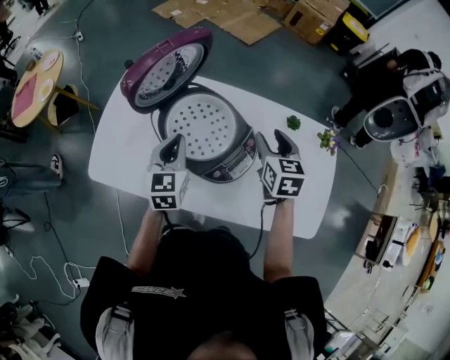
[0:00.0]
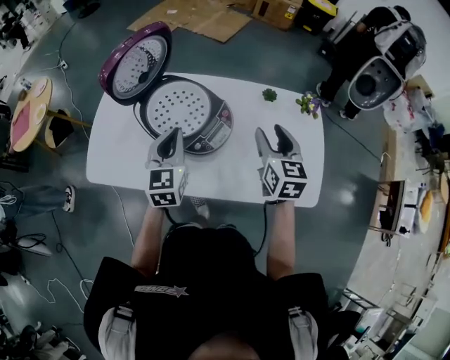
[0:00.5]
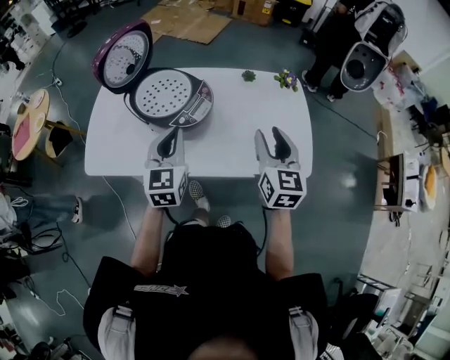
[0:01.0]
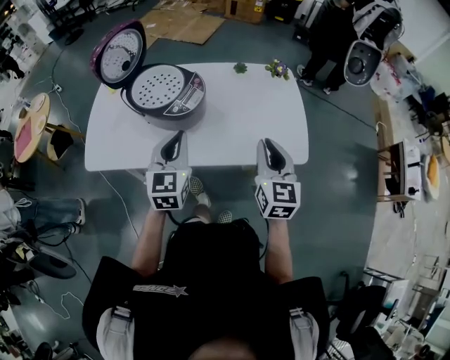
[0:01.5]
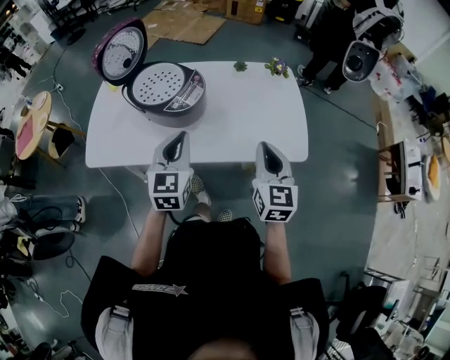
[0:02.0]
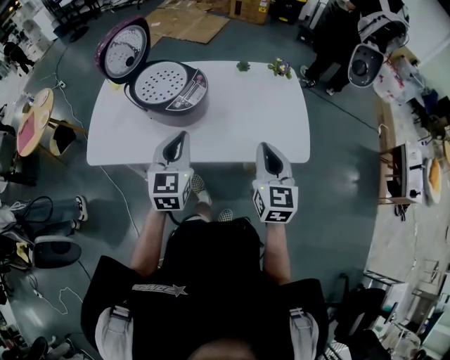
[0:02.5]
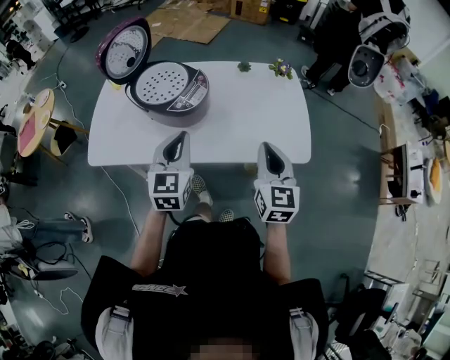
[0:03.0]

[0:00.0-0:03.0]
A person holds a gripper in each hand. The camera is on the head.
0:00.0 to 0:01.5: Both grippers move backward and to the right, roughly 35 cm. The right gripper rotates roughly 30 degrees, and closes. The left gripper changes its angle by about 20 degrees.
0:01.5 to 0:03.0: The grippers stay close to where they were, moving slightly.

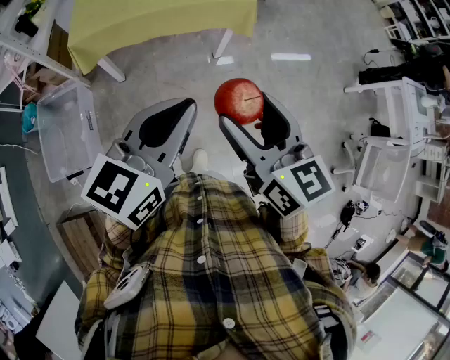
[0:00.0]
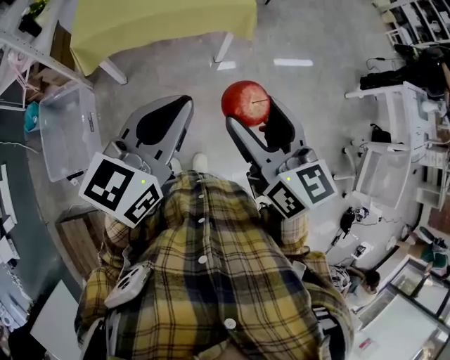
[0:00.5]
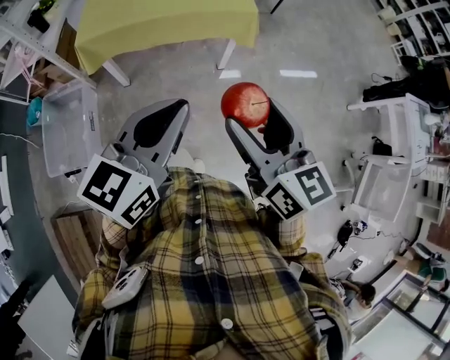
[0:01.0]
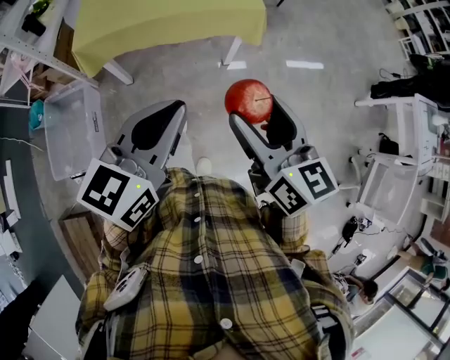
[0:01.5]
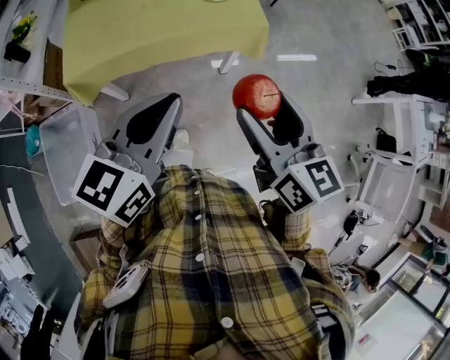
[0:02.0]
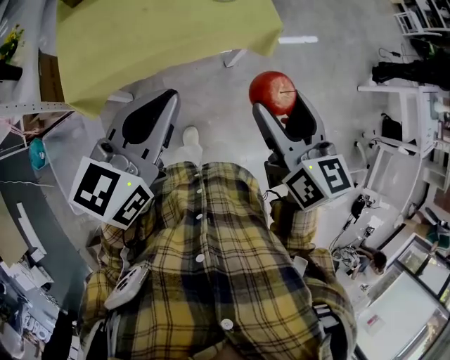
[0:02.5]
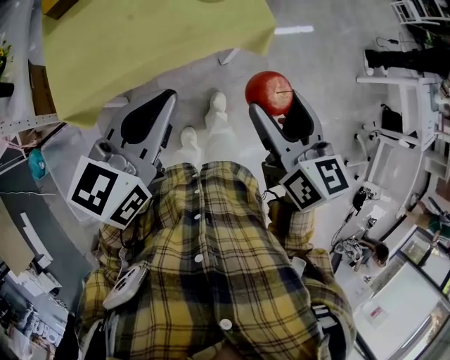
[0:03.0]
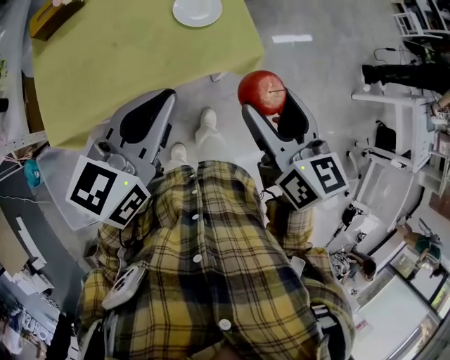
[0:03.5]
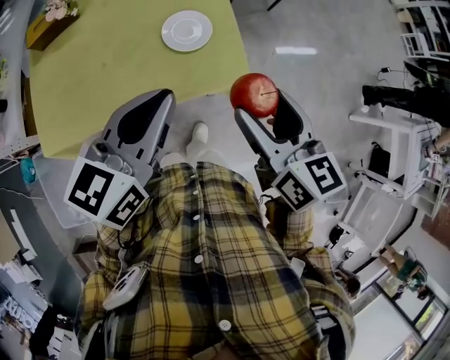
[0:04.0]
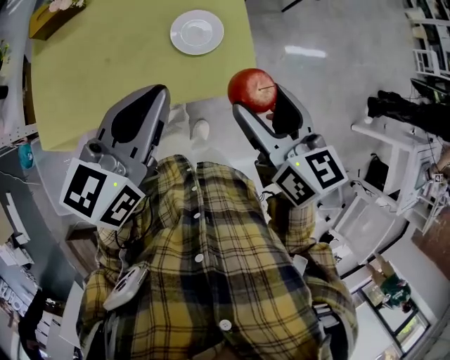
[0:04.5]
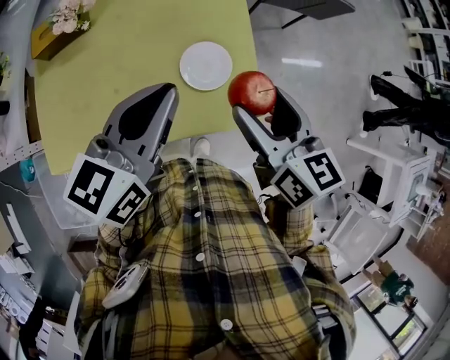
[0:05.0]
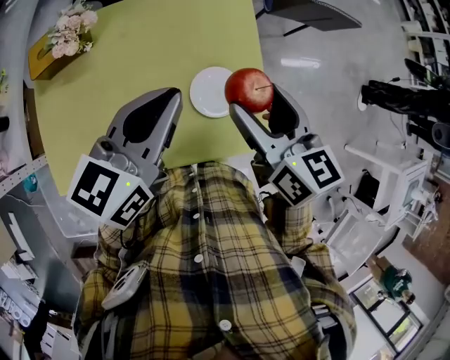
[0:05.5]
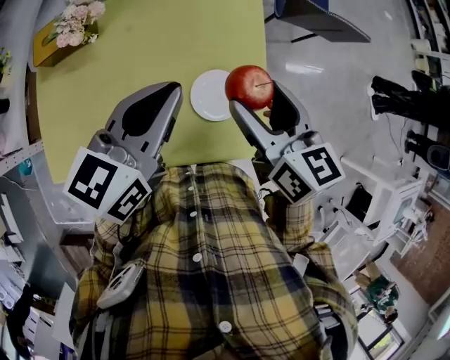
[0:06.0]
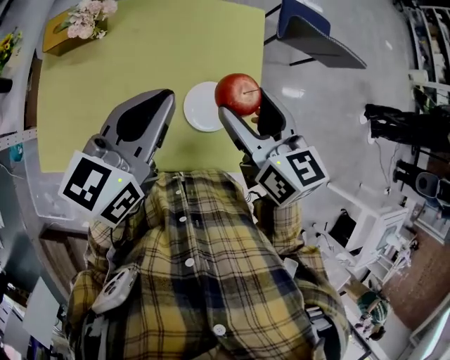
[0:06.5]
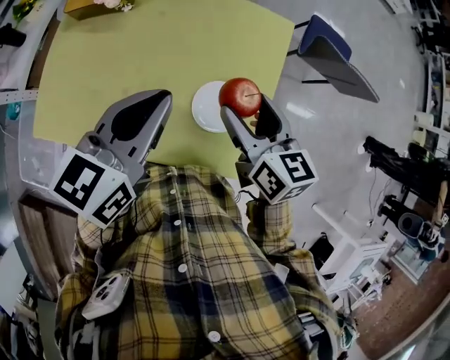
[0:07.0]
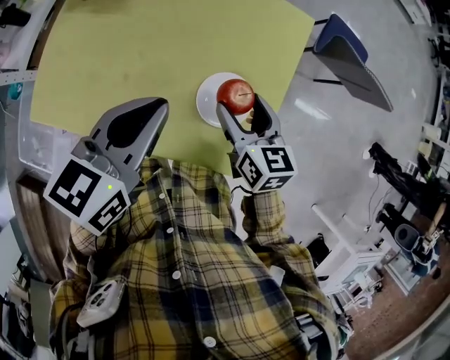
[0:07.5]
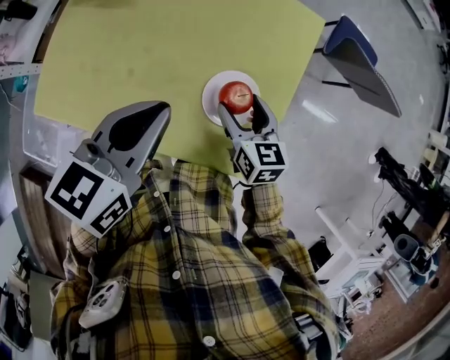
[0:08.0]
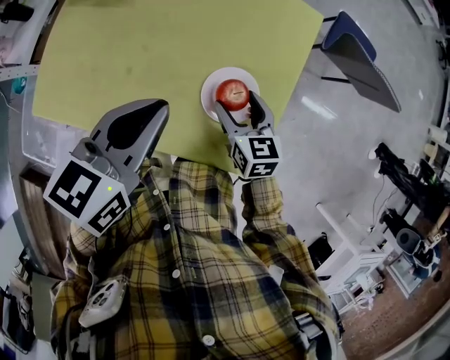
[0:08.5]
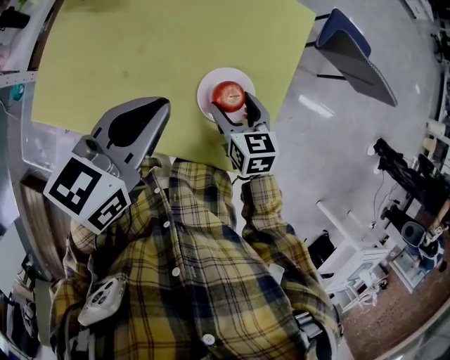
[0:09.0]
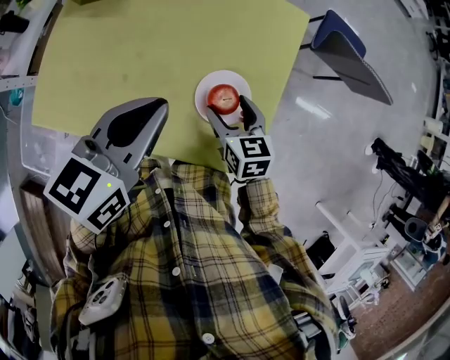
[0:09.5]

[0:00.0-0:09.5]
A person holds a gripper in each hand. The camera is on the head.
0:00.0 to 0:02.0: The grippers both shift forward by roughly 20 cm.
0:02.0 to 0:04.0: The grippers both shift forward by roughly 30 cm.
0:04.0 to 0:05.5: The two grippers go roughly 25 cm forward and to the left.
0:05.5 to 0:07.5: The right gripper shifts about 15 cm downward; the left gripper is displaced downward by some 5 cm, and rotates some 20 degrees.
0:07.5 to 0:09.5: The right gripper heads downward, covering about 5 cm.

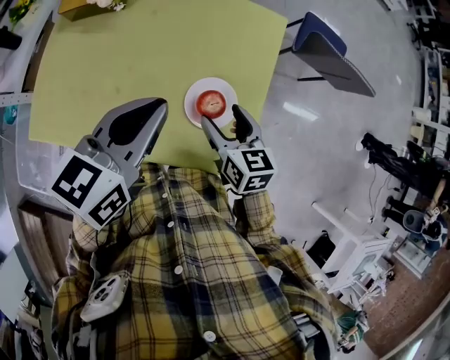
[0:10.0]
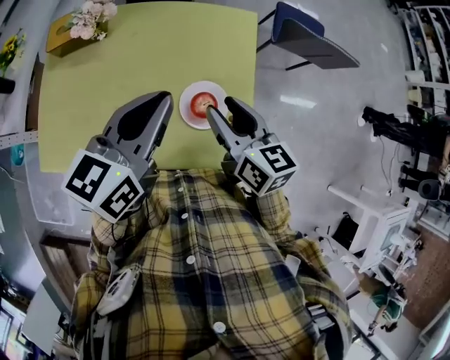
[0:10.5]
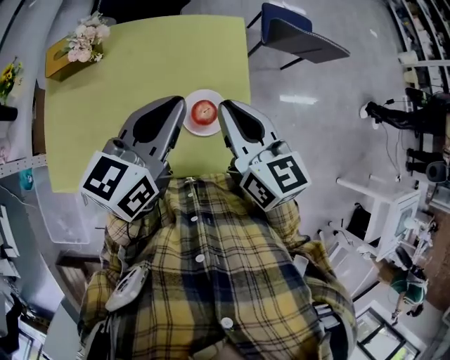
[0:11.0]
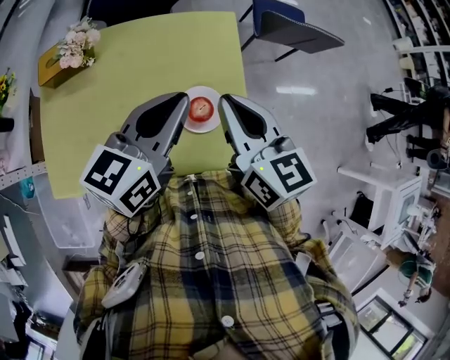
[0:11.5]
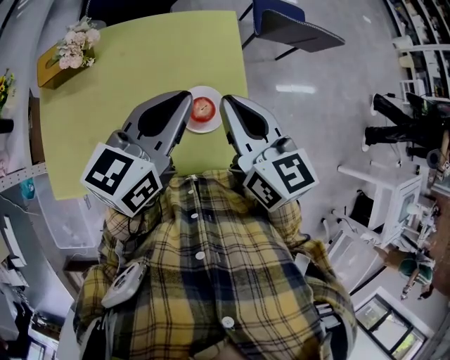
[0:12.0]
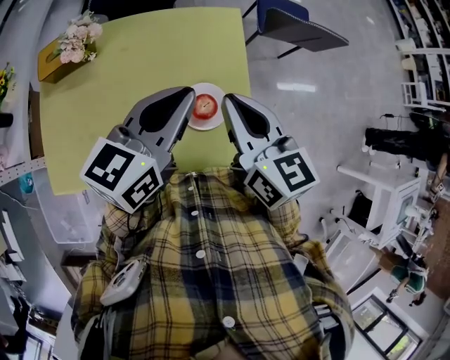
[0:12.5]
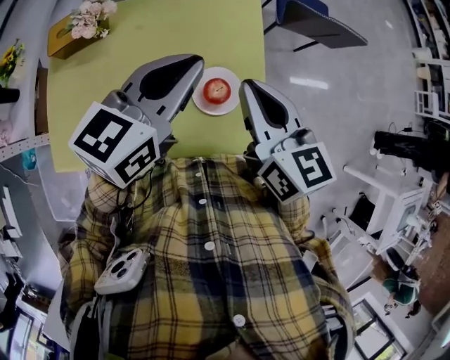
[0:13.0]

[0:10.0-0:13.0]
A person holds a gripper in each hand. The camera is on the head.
0:10.0 to 0:11.5: The right gripper is displaced upward by approximately 20 cm, swivels some 20 degrees, and closes. The left gripper is displaced upward and to the right by roughly 10 cm.
0:11.5 to 0:13.0: The grippers stay close to where they were, moving slightly.

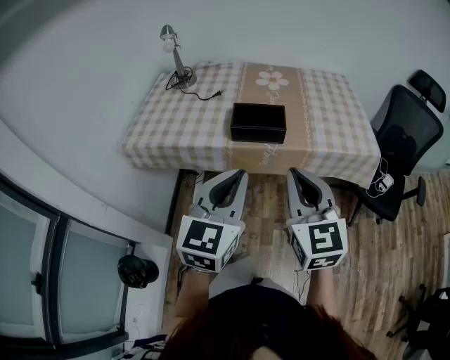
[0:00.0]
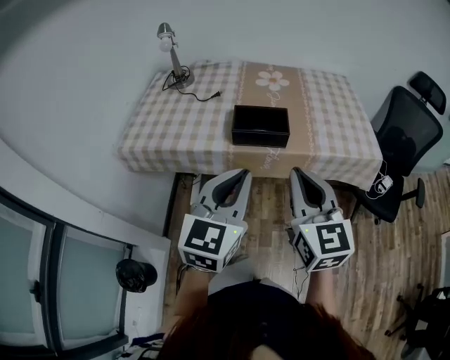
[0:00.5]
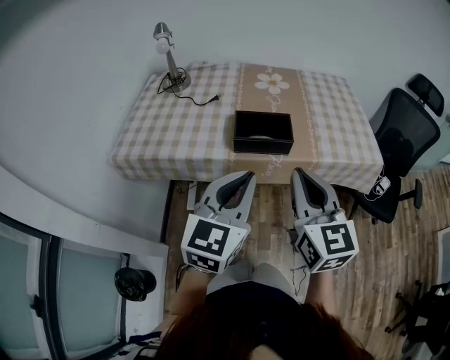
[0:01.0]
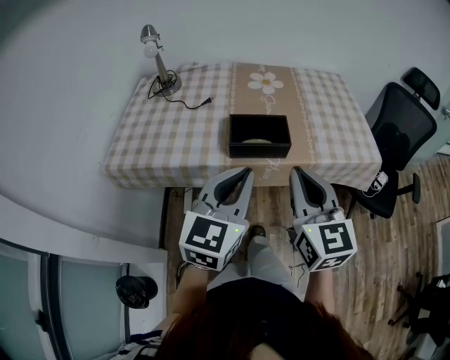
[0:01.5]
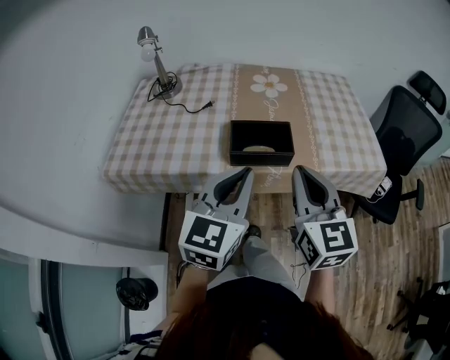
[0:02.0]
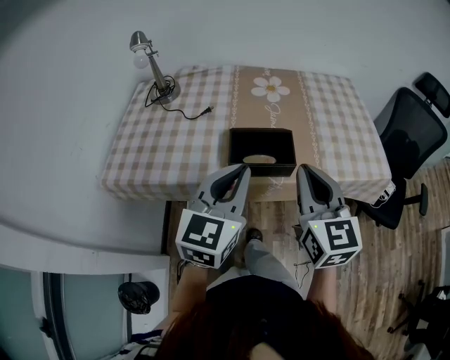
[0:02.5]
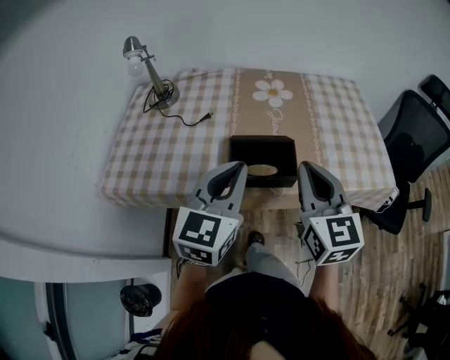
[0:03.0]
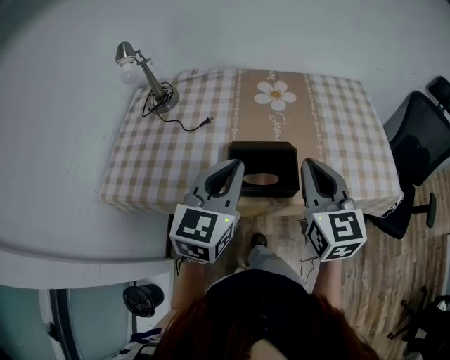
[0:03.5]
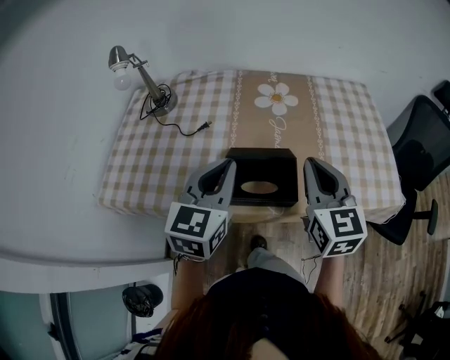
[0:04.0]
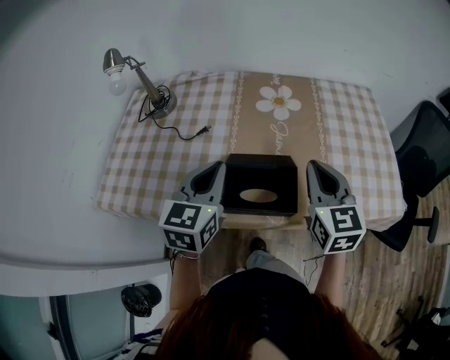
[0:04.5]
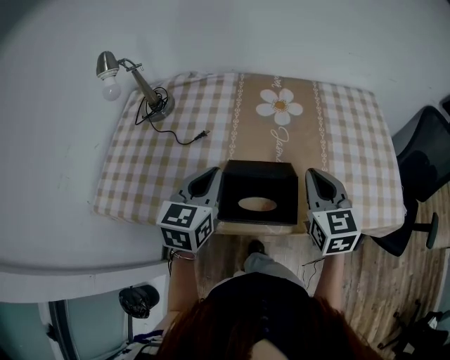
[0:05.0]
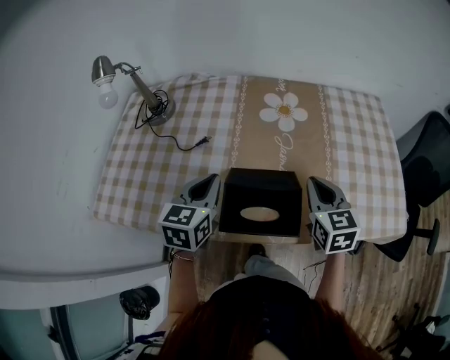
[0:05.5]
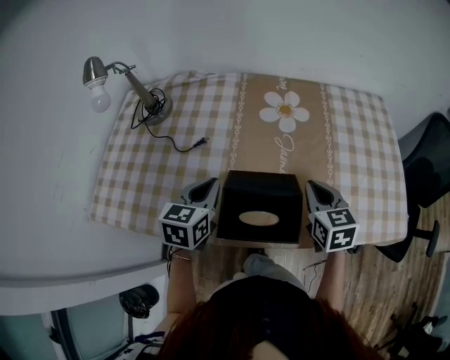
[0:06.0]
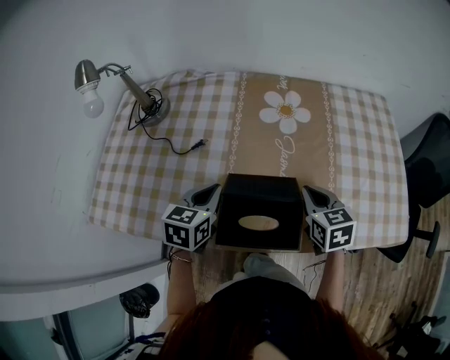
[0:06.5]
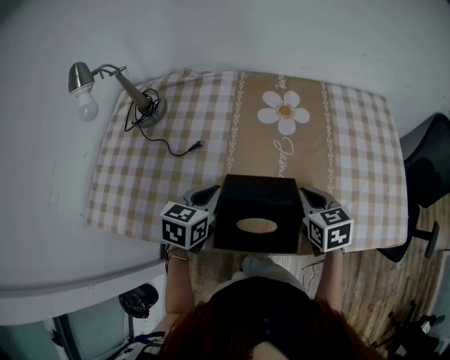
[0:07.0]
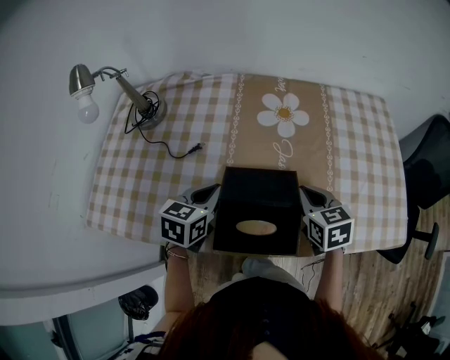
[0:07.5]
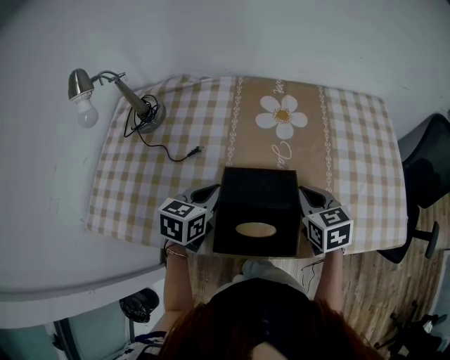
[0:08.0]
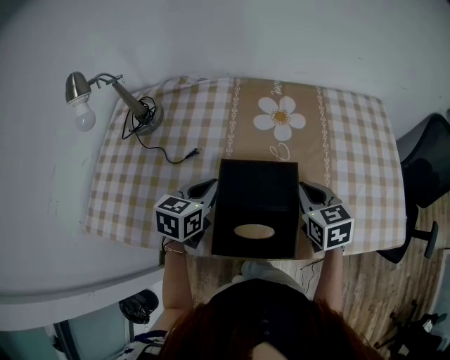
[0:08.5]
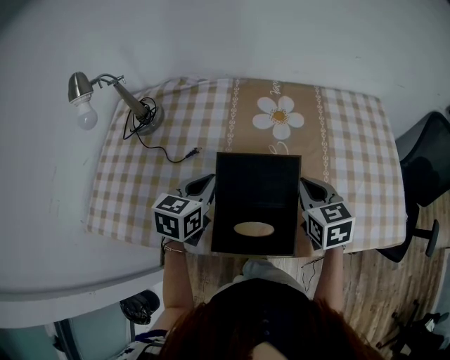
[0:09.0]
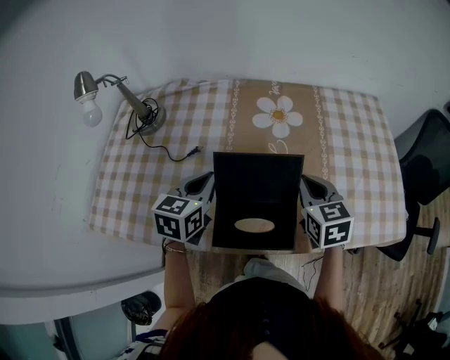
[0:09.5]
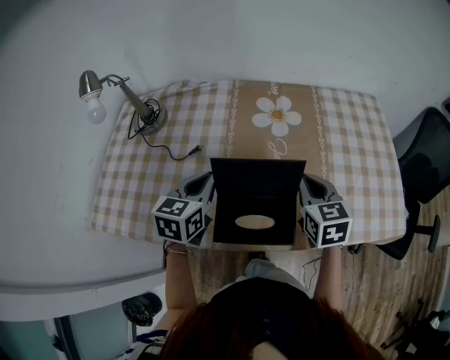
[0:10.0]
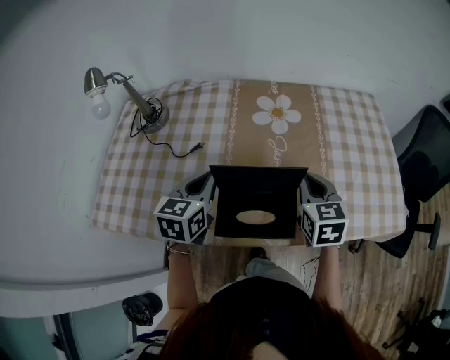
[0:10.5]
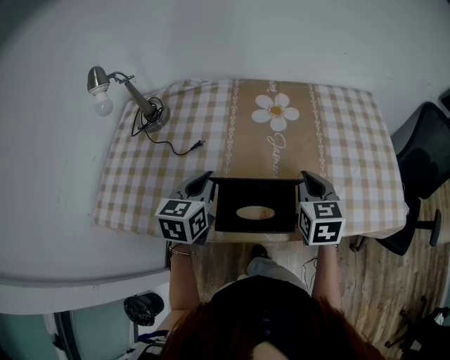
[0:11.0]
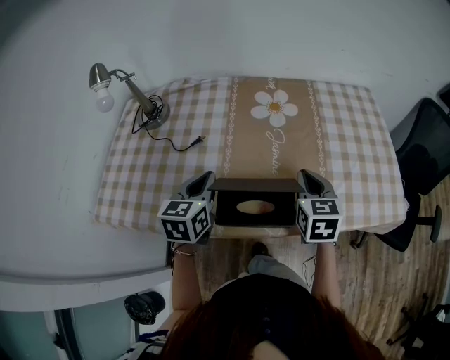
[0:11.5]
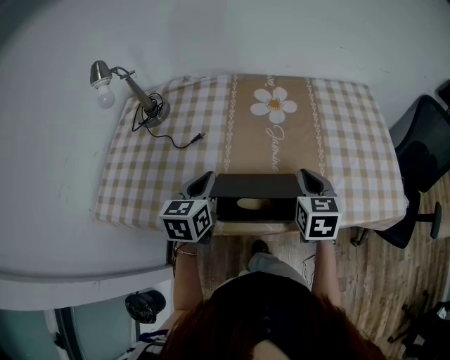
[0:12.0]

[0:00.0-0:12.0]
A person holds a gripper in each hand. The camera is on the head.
0:00.0 to 0:02.0: The two grippers go approximately 15 cm forward.
0:02.0 to 0:04.0: Both grippers move forward, some 20 cm.
0:04.0 to 0:06.0: The right gripper heads downward and forward, covering approximately 20 cm, and rotates roughly 20 degrees, while the left gripper is displaced downward, forward and to the left by some 15 cm, and changes its angle by approximately 20 degrees.
0:06.0 to 0:08.0: The grippers stay close to where they were, moving slightly.
0:08.0 to 0:10.0: Both grippers move upward, roughly 5 cm.
0:10.0 to 0:12.0: There are only small adjustments of the grippers.
